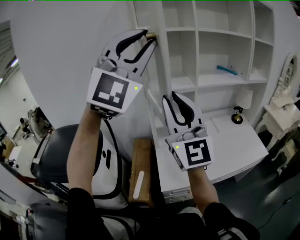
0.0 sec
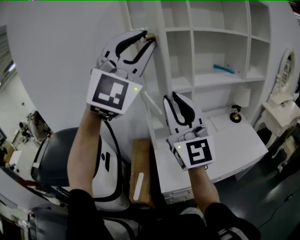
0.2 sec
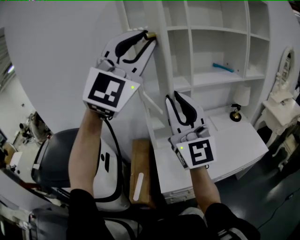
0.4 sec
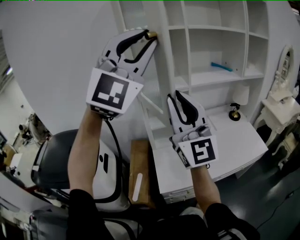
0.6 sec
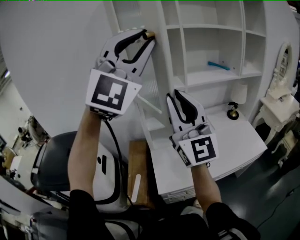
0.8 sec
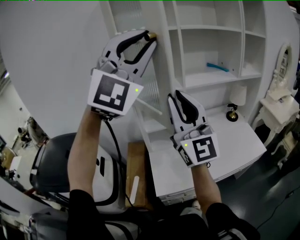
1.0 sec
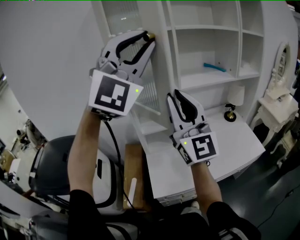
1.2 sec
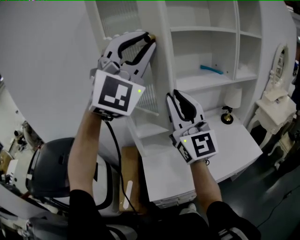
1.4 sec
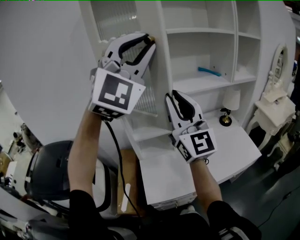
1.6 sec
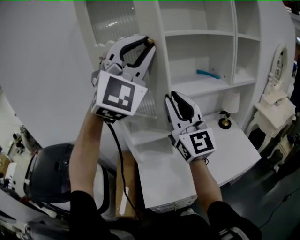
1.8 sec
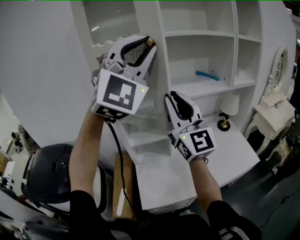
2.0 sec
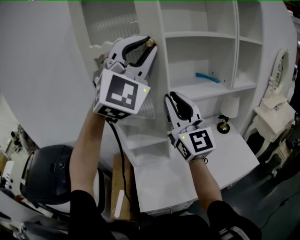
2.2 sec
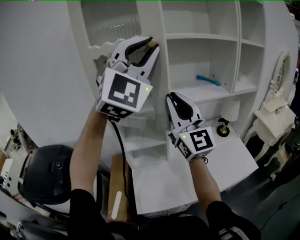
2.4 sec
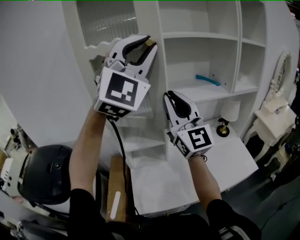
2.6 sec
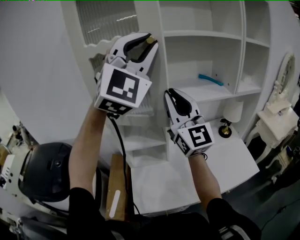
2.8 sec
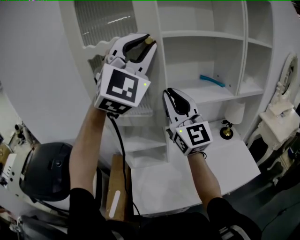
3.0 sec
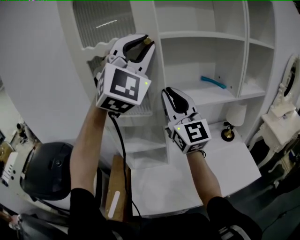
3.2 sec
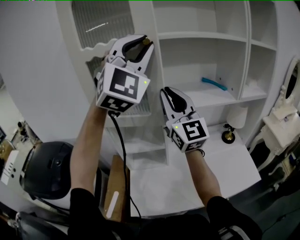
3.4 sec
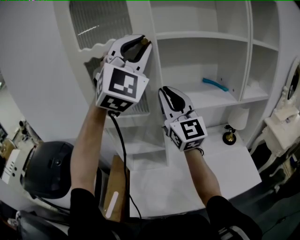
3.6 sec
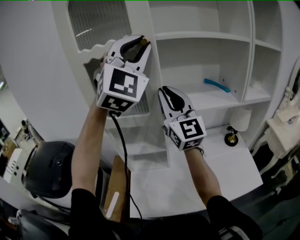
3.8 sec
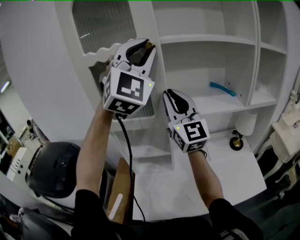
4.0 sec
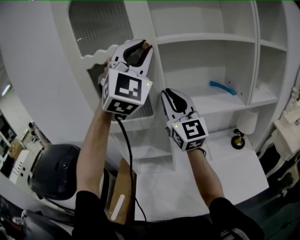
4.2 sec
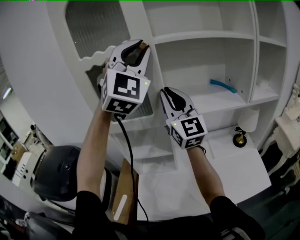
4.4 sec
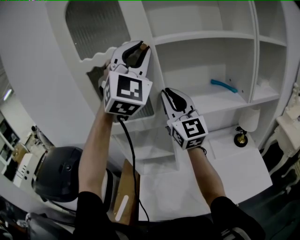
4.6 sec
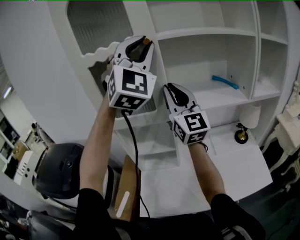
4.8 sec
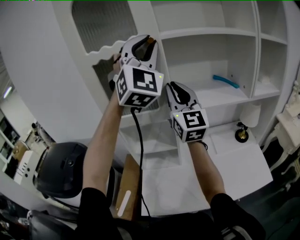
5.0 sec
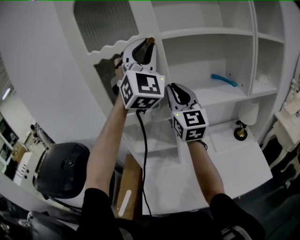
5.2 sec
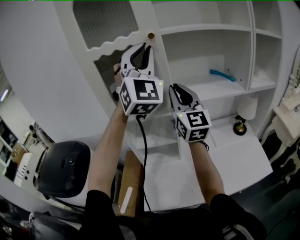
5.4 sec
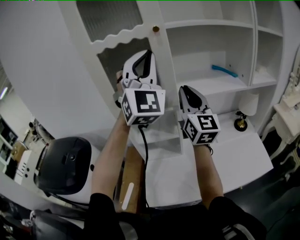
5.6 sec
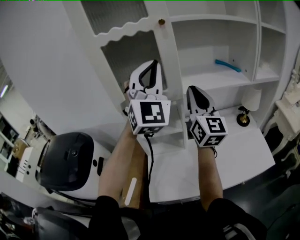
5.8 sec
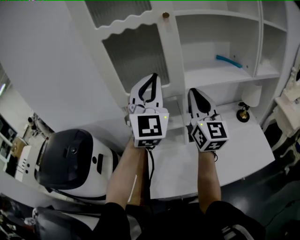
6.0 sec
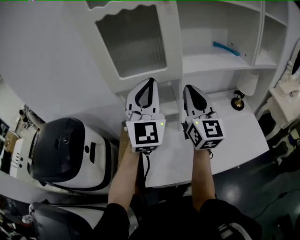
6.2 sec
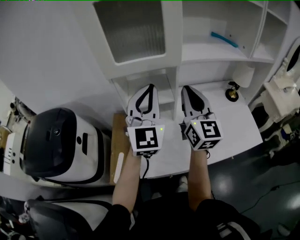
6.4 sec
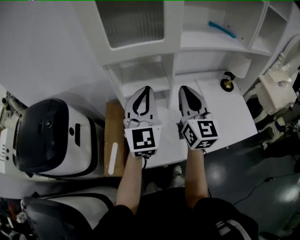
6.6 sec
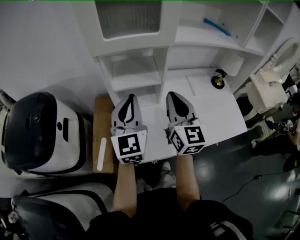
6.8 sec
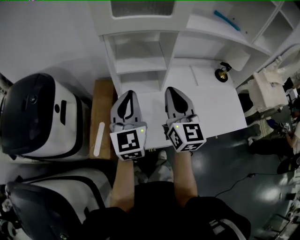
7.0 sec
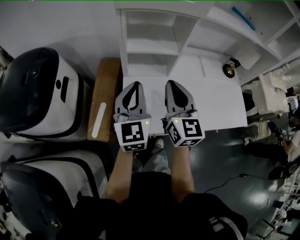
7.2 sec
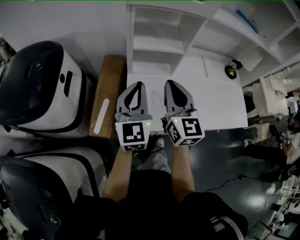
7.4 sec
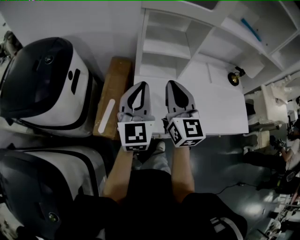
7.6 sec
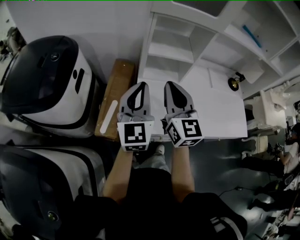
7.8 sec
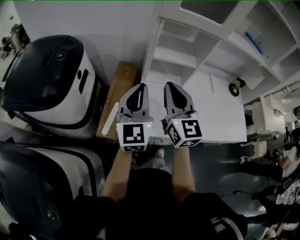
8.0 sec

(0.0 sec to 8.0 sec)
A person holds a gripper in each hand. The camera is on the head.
0.0 sec - 1.6 sec: The right gripper moves forward and to the right, some 20 cm. Meanwhile the left gripper travels to the right and forward by approximately 15 cm.
1.6 sec - 3.2 sec: The two grippers go roughly 15 cm forward.
3.2 sec - 4.8 sec: The two grippers go roughly 5 cm forward.
4.8 sec - 6.4 sec: The right gripper moves downward and backward, some 20 cm, and changes its angle by approximately 20 degrees. Meanwhile the left gripper shifts approximately 30 cm downward, and changes its angle by some 40 degrees.
6.4 sec - 8.0 sec: The right gripper goes about 25 cm to the left, backward and downward; the left gripper is displaced to the left, downward and backward by about 25 cm, and changes its angle by approximately 30 degrees.

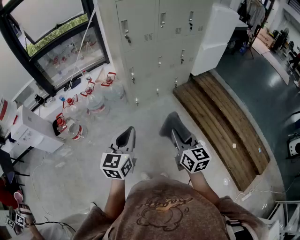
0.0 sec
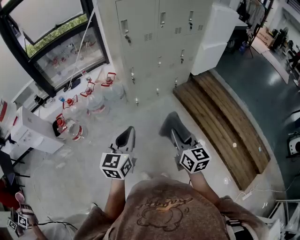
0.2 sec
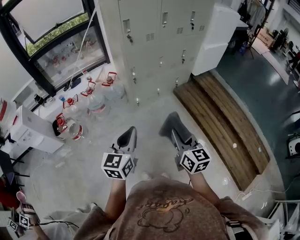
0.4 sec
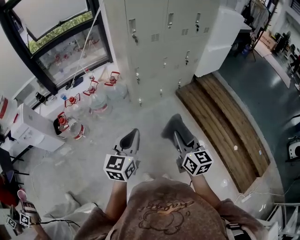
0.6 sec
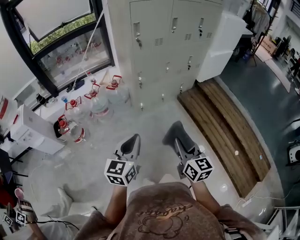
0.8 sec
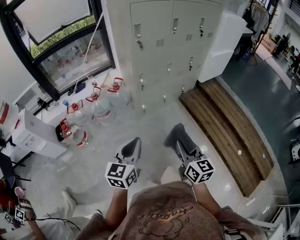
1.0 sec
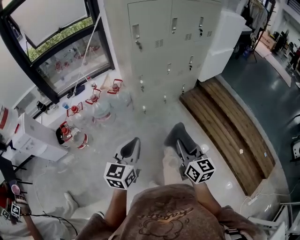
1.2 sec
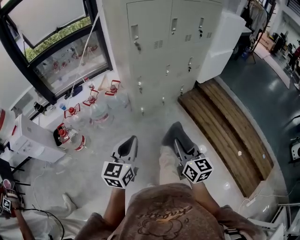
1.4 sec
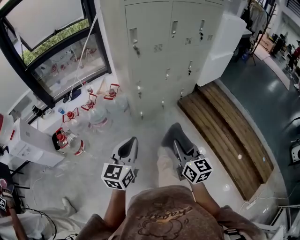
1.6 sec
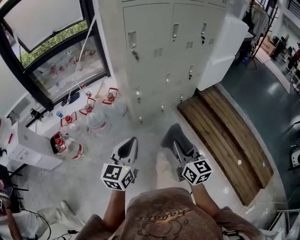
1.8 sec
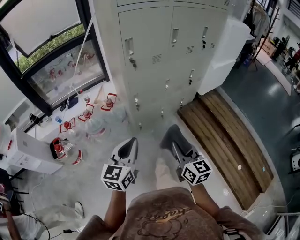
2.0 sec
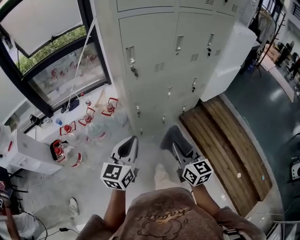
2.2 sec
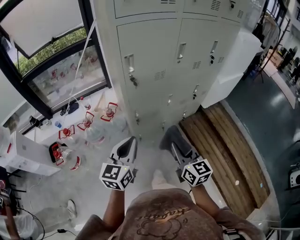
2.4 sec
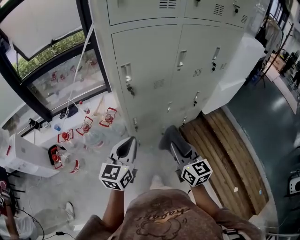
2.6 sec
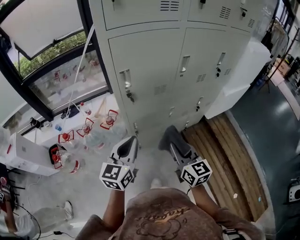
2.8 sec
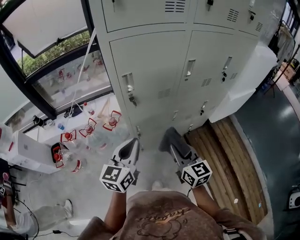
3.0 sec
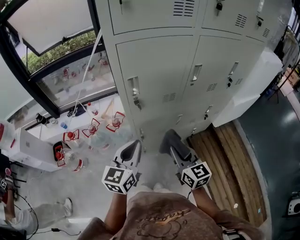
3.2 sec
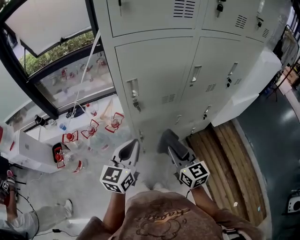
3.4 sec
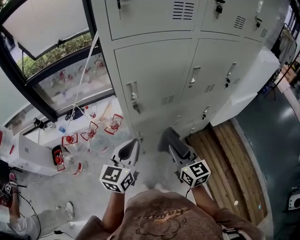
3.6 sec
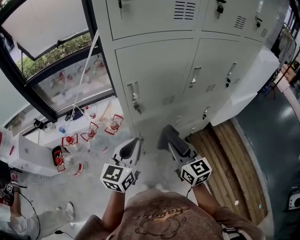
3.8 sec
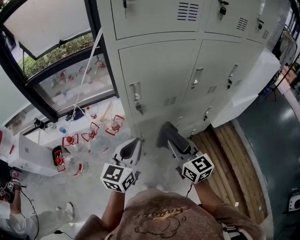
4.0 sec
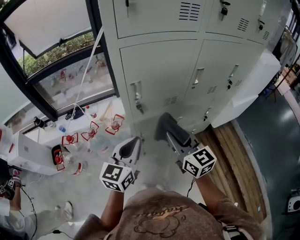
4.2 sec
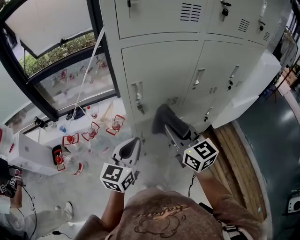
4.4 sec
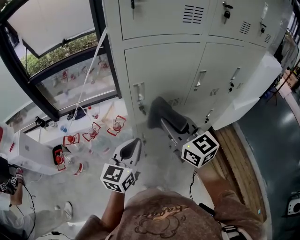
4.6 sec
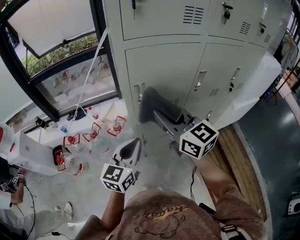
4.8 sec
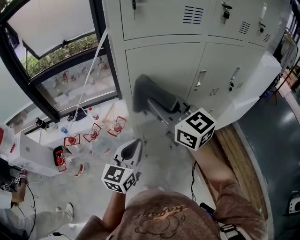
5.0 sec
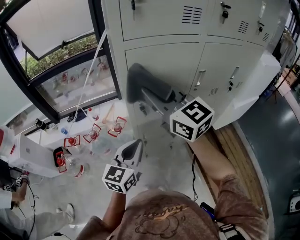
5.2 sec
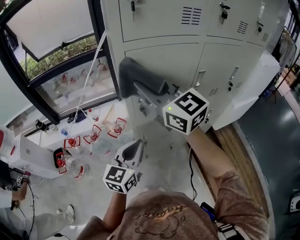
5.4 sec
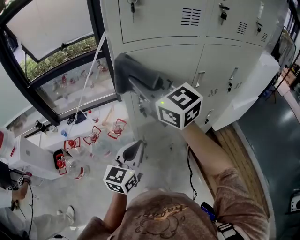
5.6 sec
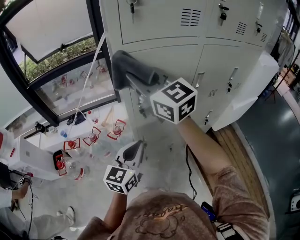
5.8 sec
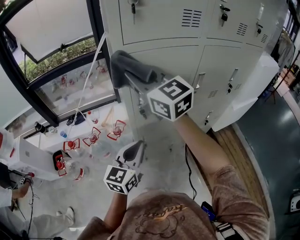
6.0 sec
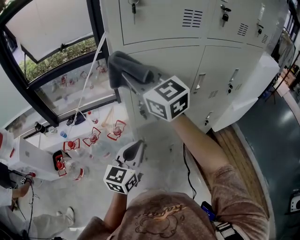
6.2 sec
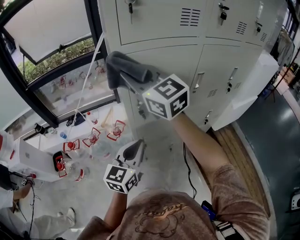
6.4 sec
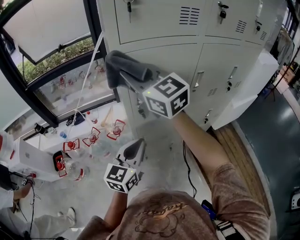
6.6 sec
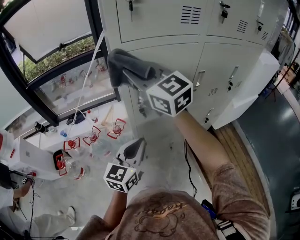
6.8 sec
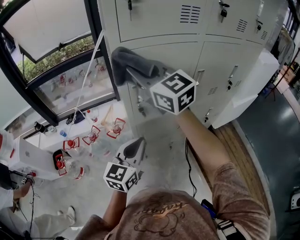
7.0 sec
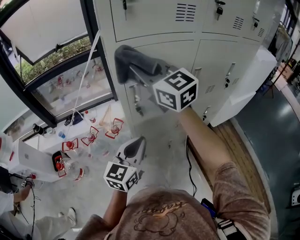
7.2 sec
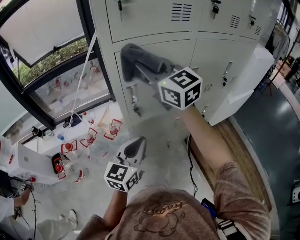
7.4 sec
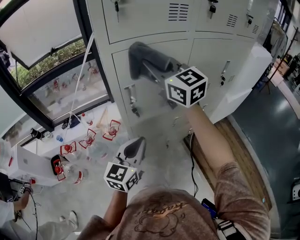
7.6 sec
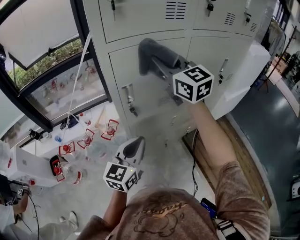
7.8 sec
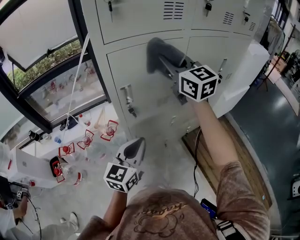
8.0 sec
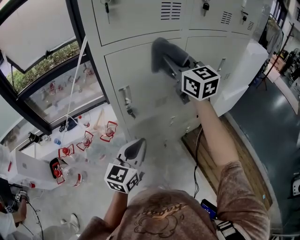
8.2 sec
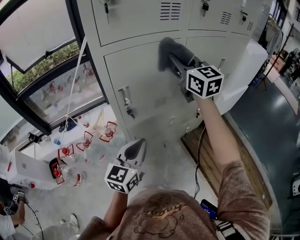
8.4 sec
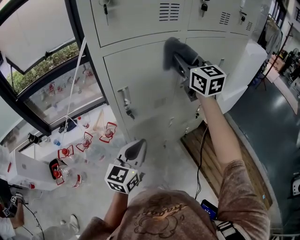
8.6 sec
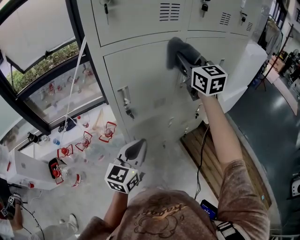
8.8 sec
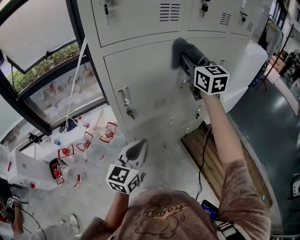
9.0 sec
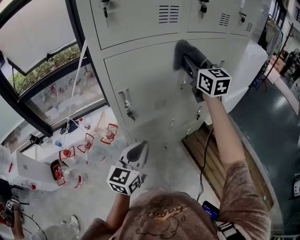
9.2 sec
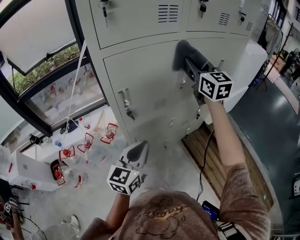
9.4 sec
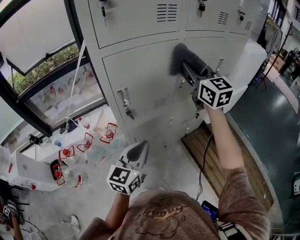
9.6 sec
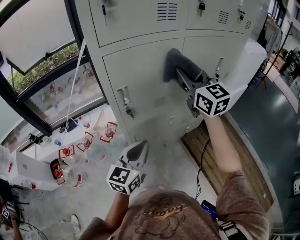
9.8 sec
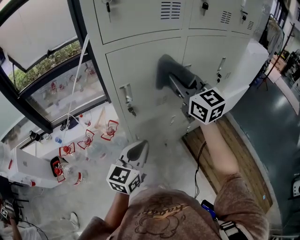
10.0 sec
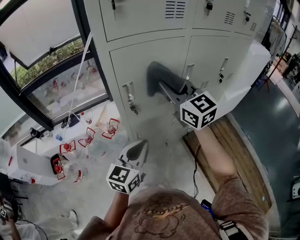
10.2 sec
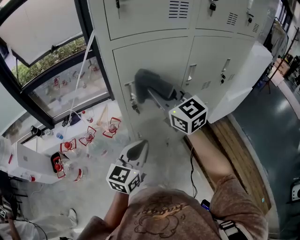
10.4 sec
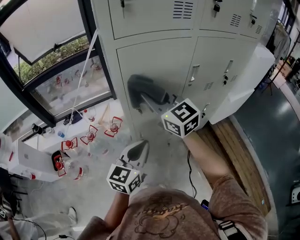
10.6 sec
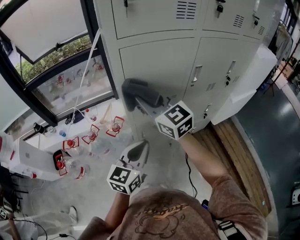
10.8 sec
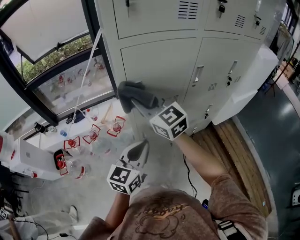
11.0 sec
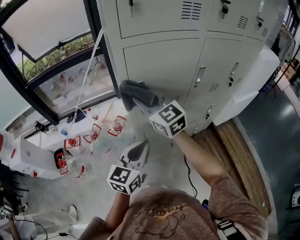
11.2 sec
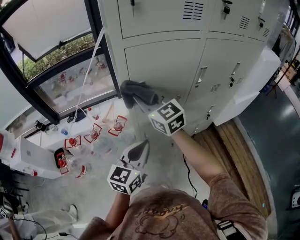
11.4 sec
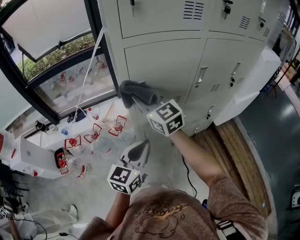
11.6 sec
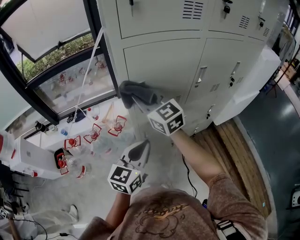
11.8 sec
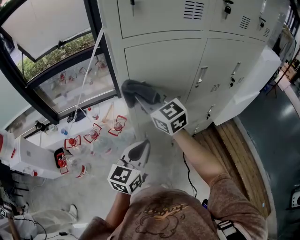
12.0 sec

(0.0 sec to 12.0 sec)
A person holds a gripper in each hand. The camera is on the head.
0.0 sec - 1.6 sec: The two grippers go roughly 10 cm forward and to the left.
1.6 sec - 3.0 sec: Both grippers move forward, some 30 cm.
3.0 sec - 4.4 sec: The right gripper is displaced upward, forward and to the left by approximately 15 cm.
4.4 sec - 6.0 sec: The right gripper travels upward, forward and to the left by approximately 25 cm, and turns by some 20 degrees.
6.0 sec - 7.6 sec: The right gripper is displaced to the right by some 10 cm.
7.6 sec - 9.0 sec: The right gripper heads to the right and forward, covering approximately 20 cm, and turns by about 20 degrees.
9.0 sec - 10.4 sec: The right gripper shifts approximately 20 cm to the left, backward and downward, and turns by about 20 degrees.
10.4 sec - 12.0 sec: The right gripper shifts some 10 cm to the left and downward.

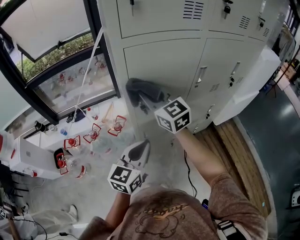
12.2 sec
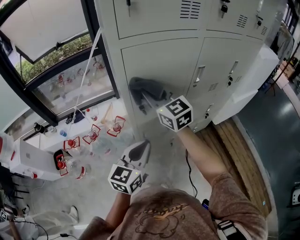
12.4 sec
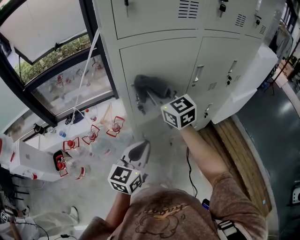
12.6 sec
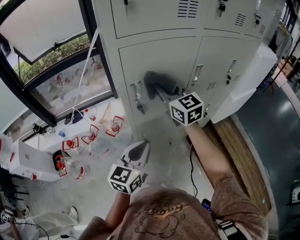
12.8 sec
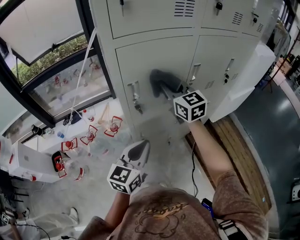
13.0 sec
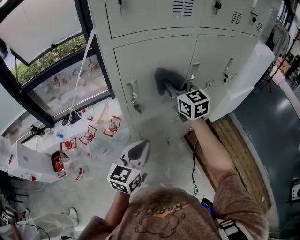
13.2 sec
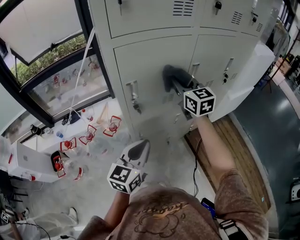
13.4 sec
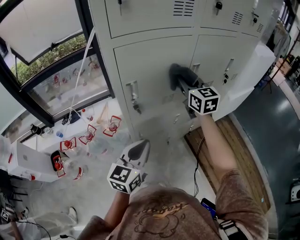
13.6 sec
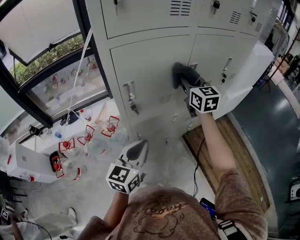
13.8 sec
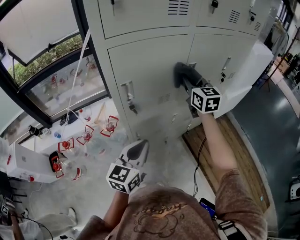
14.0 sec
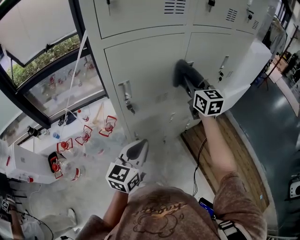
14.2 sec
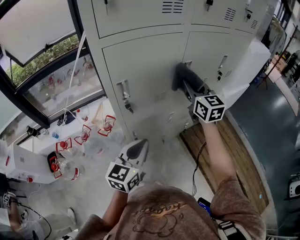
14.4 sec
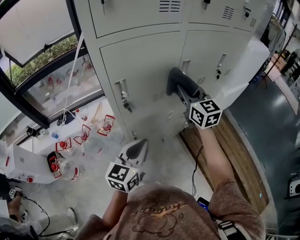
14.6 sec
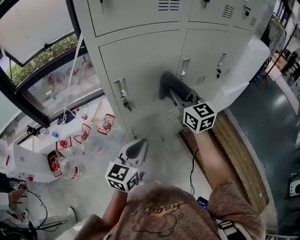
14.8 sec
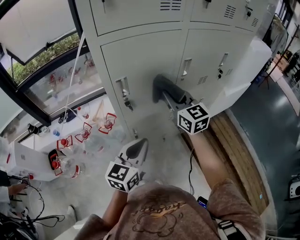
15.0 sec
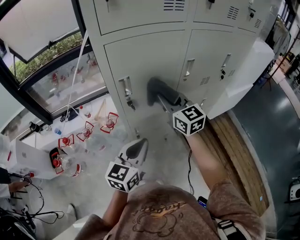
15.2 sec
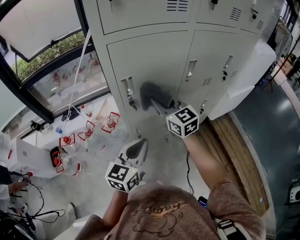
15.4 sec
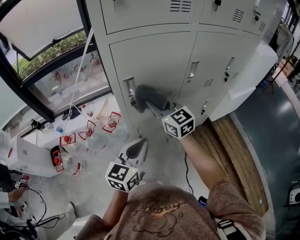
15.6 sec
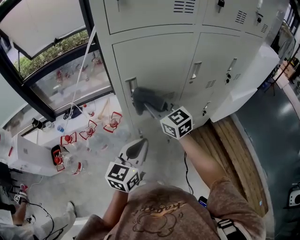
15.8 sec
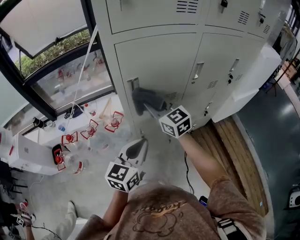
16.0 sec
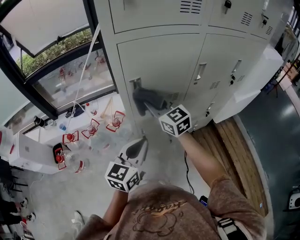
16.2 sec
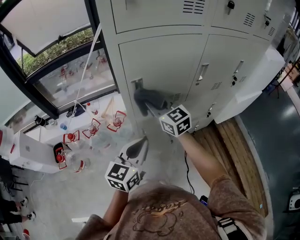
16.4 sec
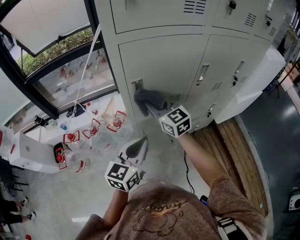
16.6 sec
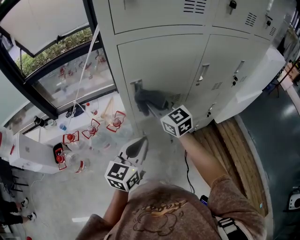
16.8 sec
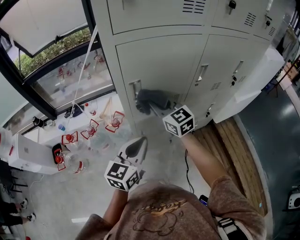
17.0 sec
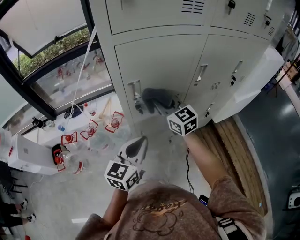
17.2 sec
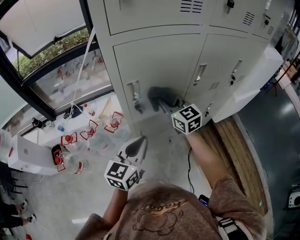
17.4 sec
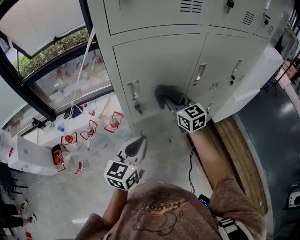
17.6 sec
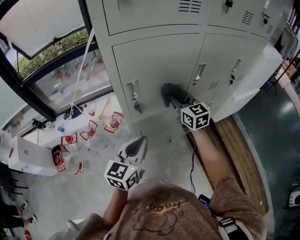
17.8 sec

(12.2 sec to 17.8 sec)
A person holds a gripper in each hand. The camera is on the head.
12.2 sec - 13.6 sec: The right gripper travels to the right by approximately 20 cm, and rotates roughly 20 degrees.
13.6 sec - 15.0 sec: The right gripper moves backward, about 10 cm.
15.0 sec - 16.4 sec: The right gripper moves to the left and downward, approximately 15 cm.
16.4 sec - 17.8 sec: The right gripper shifts roughly 15 cm to the right.
